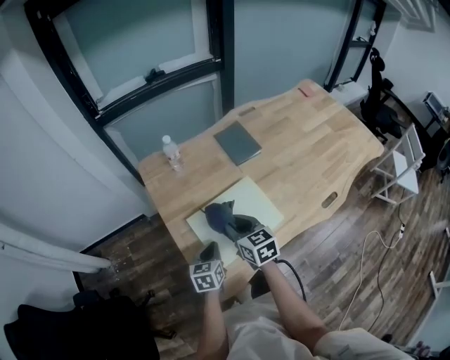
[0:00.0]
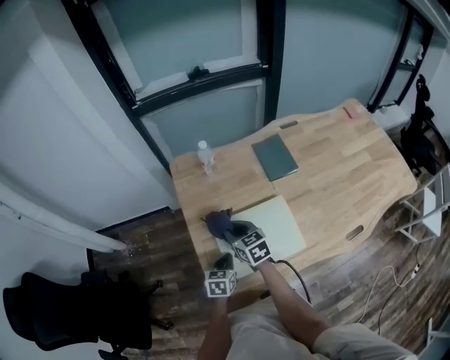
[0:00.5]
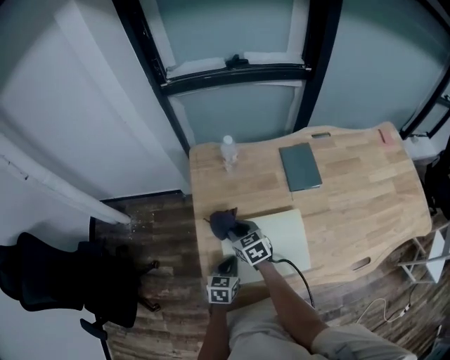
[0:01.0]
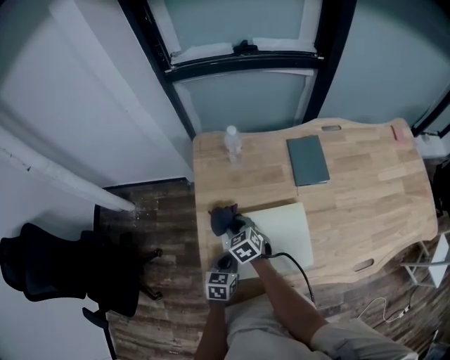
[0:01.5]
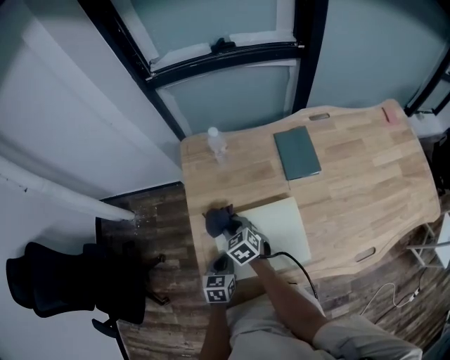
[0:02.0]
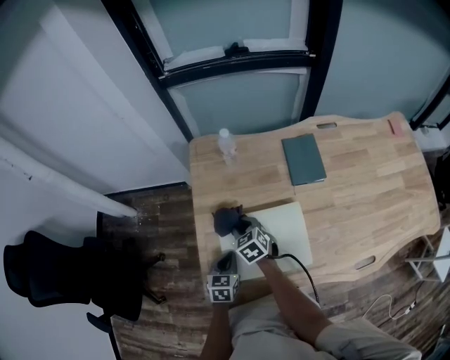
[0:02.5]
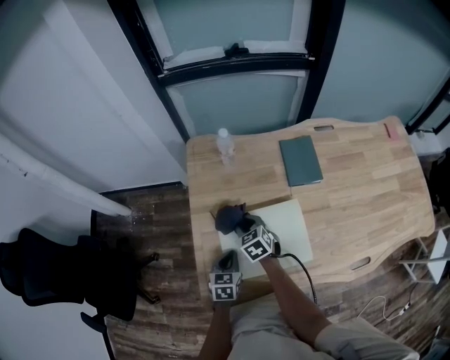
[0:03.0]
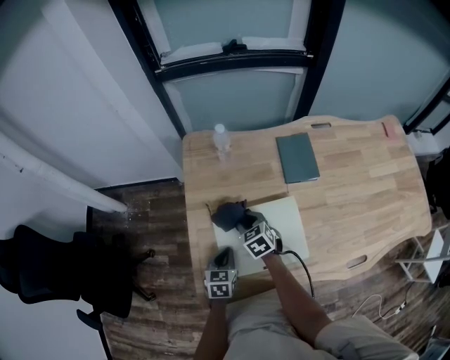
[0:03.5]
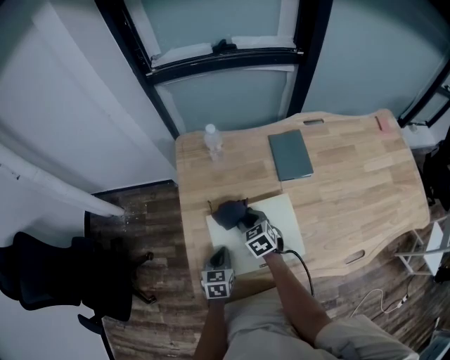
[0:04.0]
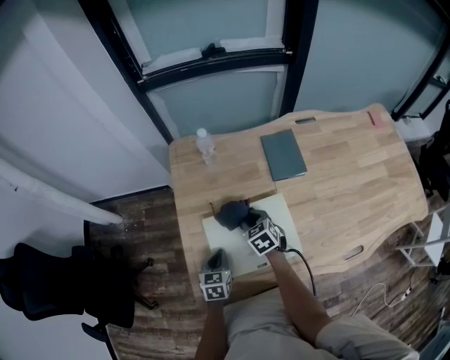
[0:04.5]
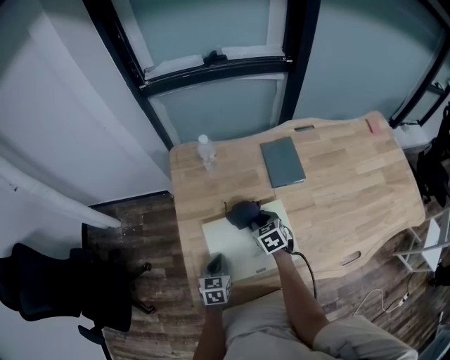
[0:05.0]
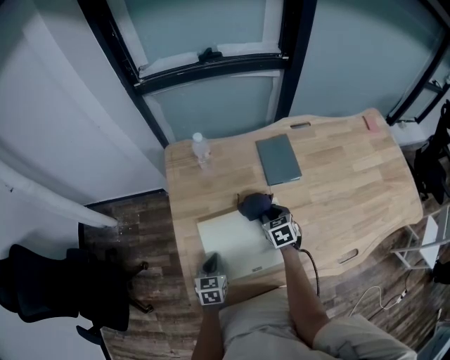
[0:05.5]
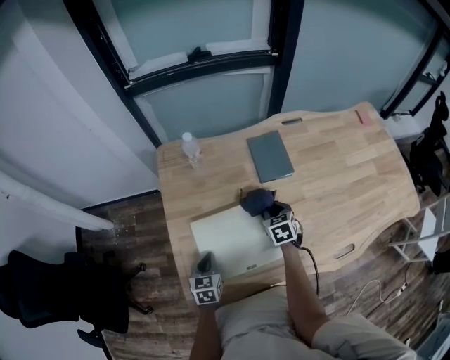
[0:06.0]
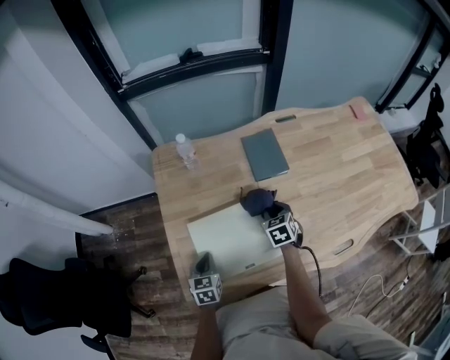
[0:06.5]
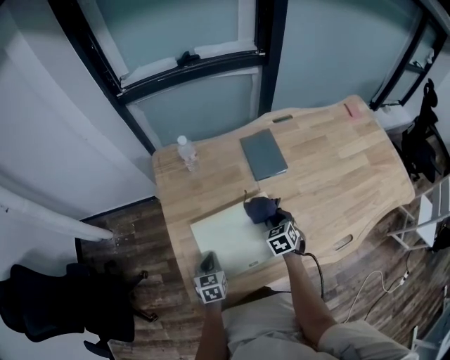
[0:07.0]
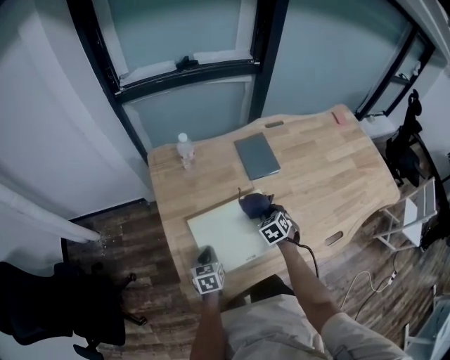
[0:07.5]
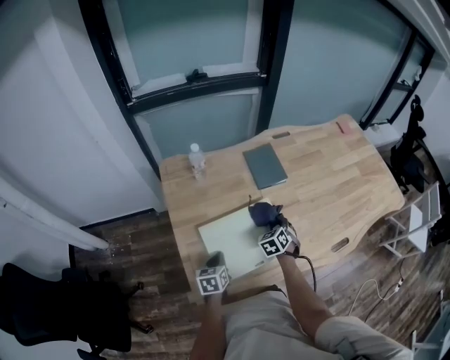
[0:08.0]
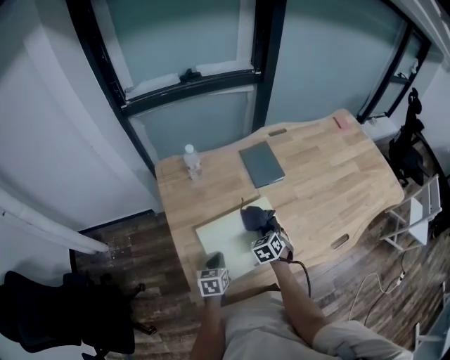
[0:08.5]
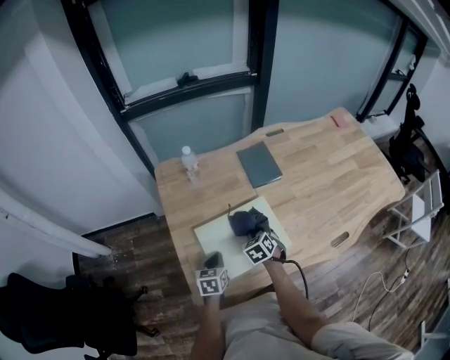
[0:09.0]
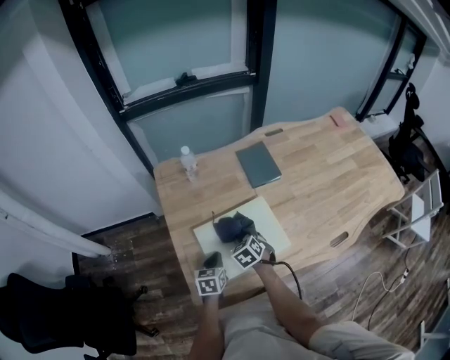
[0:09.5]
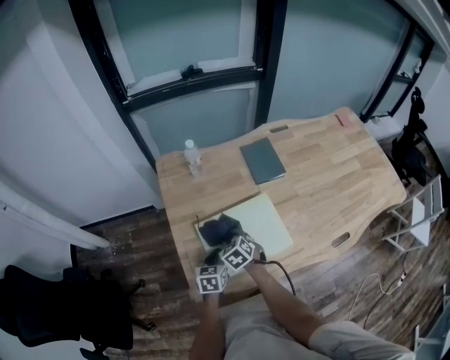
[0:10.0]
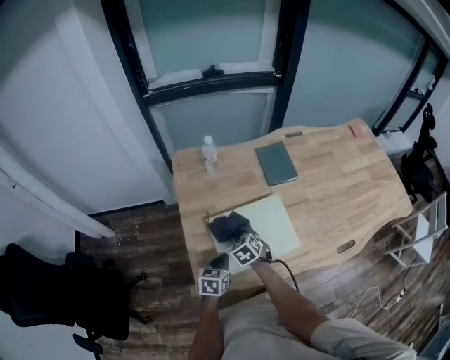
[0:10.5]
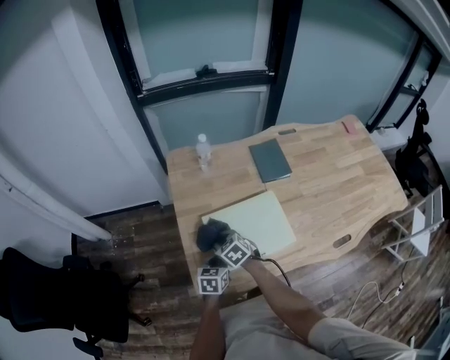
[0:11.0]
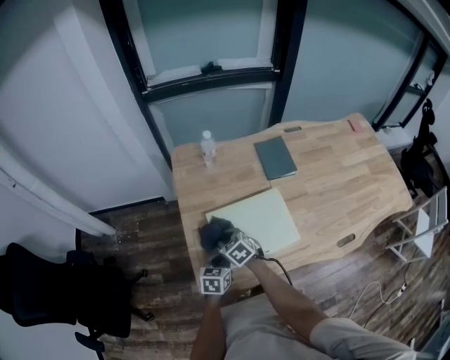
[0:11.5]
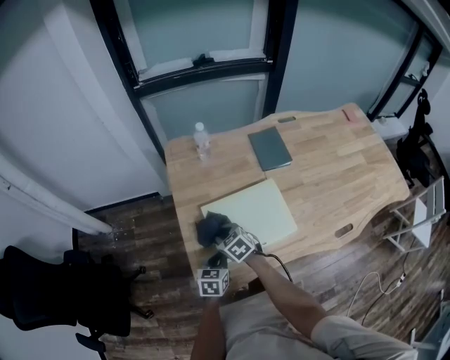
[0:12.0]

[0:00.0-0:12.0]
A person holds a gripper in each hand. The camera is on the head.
0:00.0 to 0:02.0: The left gripper moves downward, approximately 5 cm. Meanwhile the right gripper shifts roughly 20 cm downward, forward and to the left, and changes its angle by roughly 40 degrees.
0:02.0 to 0:04.0: The right gripper is displaced to the right by approximately 10 cm.
0:04.0 to 0:06.0: The right gripper heads to the right, covering about 15 cm, and turns by approximately 20 degrees.
0:06.0 to 0:08.0: The right gripper goes roughly 5 cm backward, and turns by approximately 20 degrees.
0:08.0 to 0:10.0: The right gripper travels to the left and backward by about 20 cm, and changes its angle by some 30 degrees.
0:10.0 to 0:12.0: The right gripper is displaced to the left by roughly 5 cm. The left gripper goes approximately 5 cm backward.

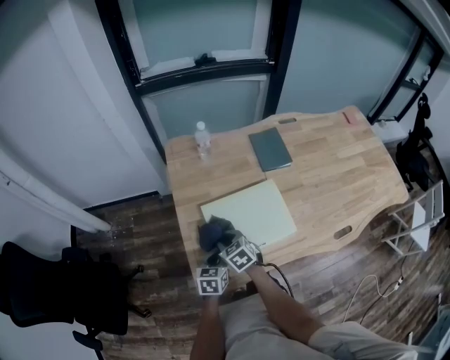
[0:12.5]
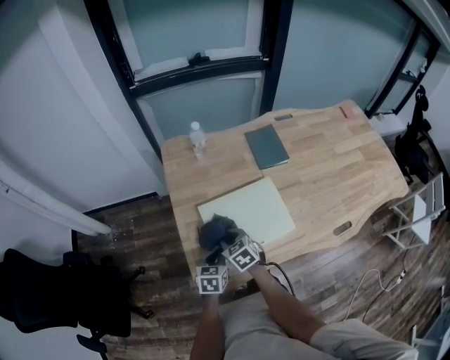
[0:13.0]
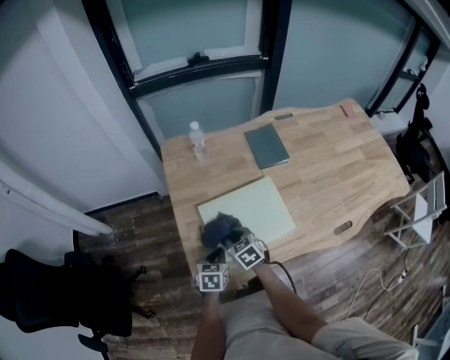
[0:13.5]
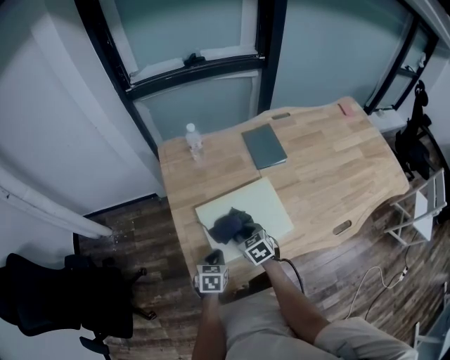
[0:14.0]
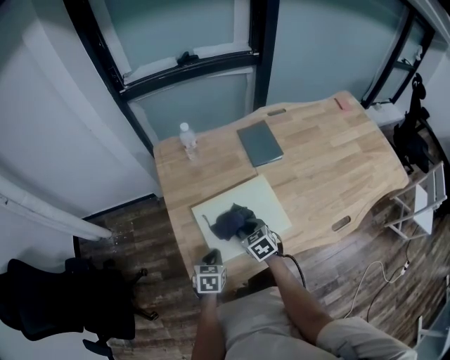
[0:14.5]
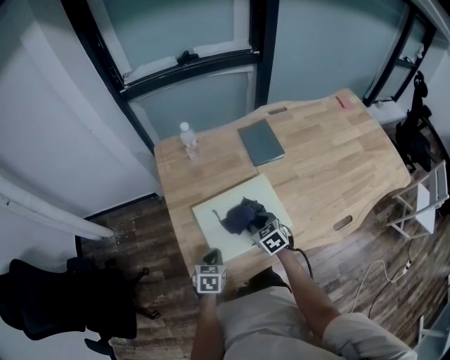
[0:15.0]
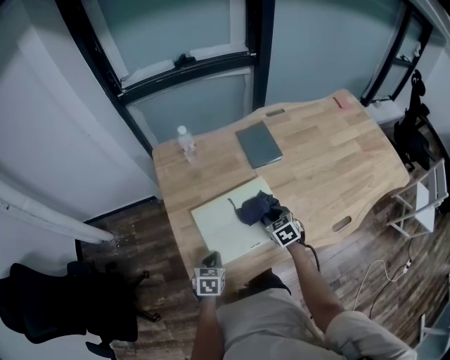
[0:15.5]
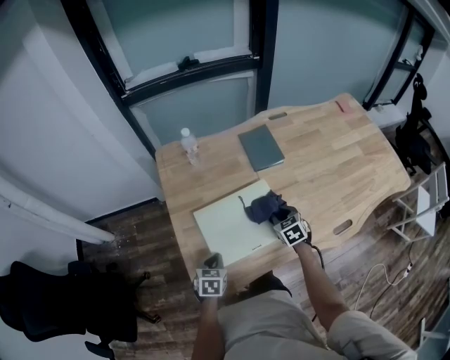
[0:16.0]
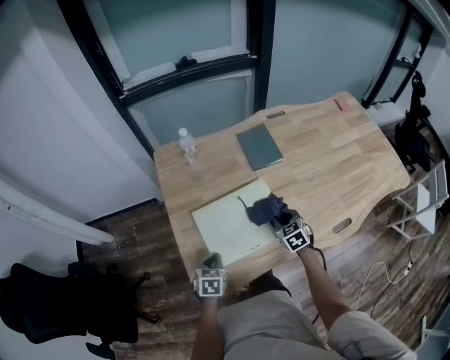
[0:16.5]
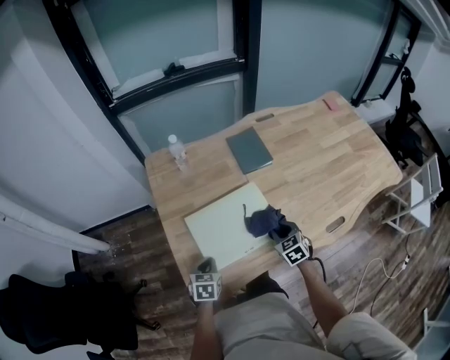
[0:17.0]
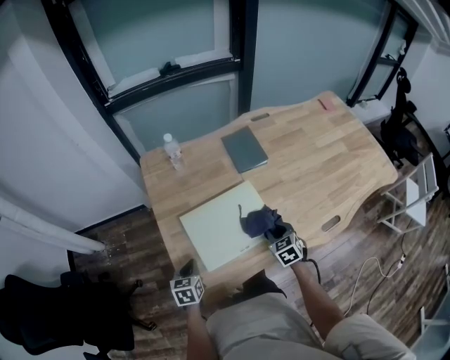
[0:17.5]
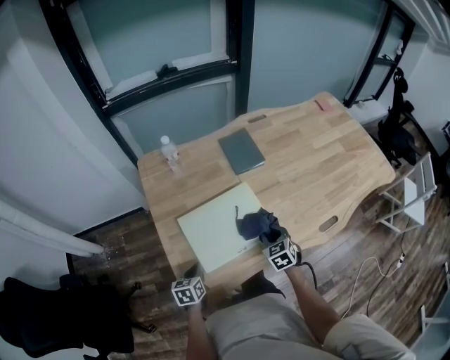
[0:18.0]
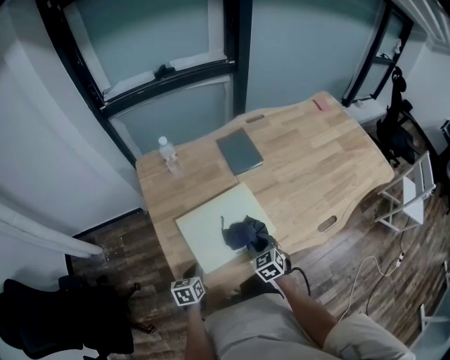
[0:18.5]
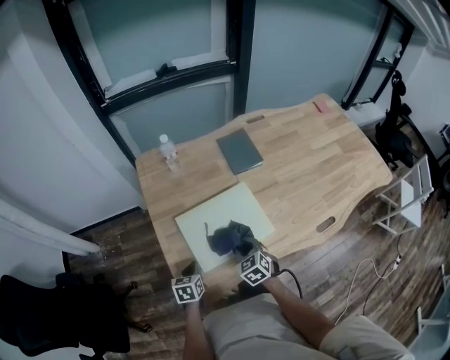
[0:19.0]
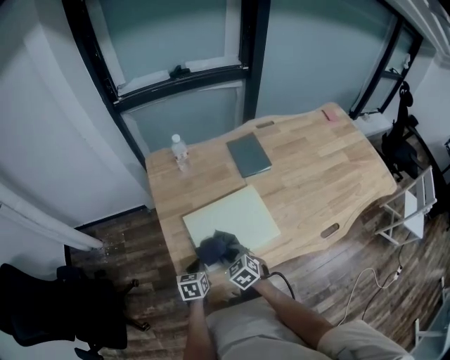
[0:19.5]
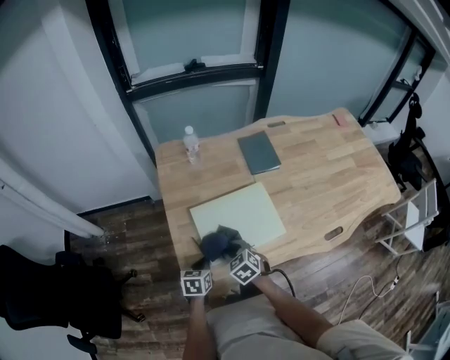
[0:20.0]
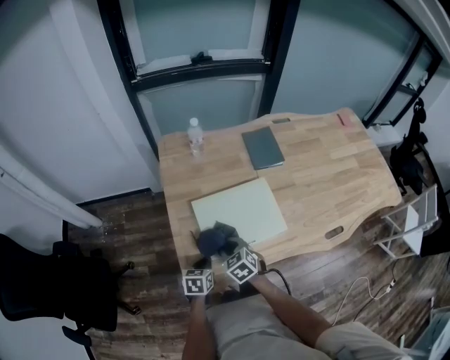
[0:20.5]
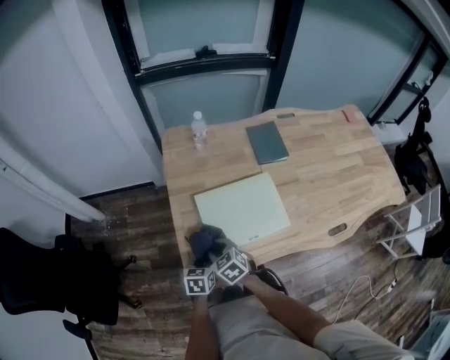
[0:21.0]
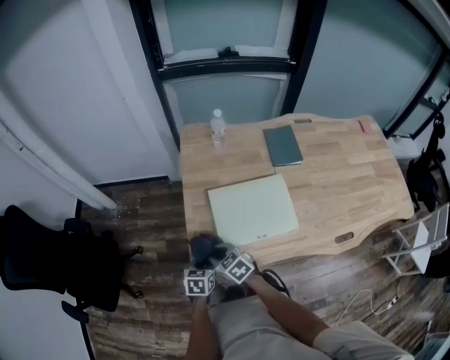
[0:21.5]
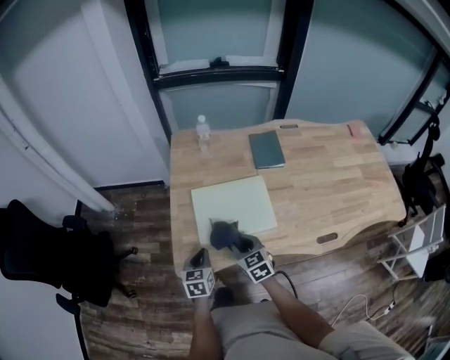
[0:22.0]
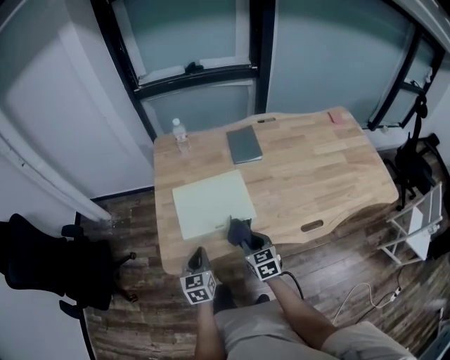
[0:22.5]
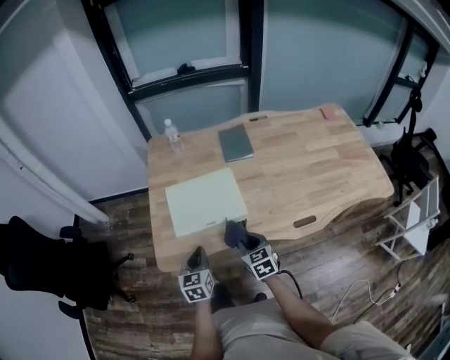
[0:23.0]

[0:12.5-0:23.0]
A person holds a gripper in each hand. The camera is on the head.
0:12.5 to 0:14.5: The right gripper shifts roughly 10 cm to the right.
0:14.5 to 0:16.5: The right gripper shifts roughly 15 cm to the right.
0:16.5 to 0:19.0: The right gripper travels to the left and backward by some 15 cm.
0:19.0 to 0:21.0: The right gripper is displaced to the left by some 15 cm, and changes its angle by some 20 degrees.
0:21.0 to 0:23.0: The right gripper moves to the right and backward, approximately 30 cm, and rotates roughly 20 degrees. Meanwhile the left gripper travels upward, backward and to the right by about 20 cm, and turns by roughly 20 degrees.

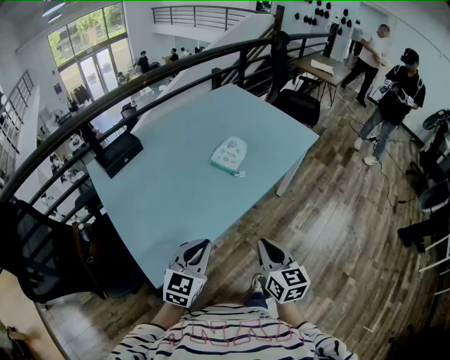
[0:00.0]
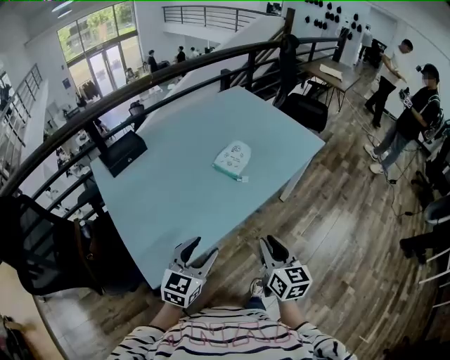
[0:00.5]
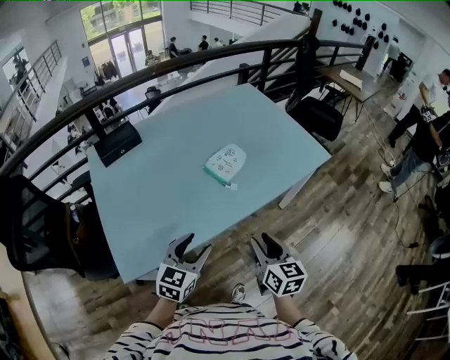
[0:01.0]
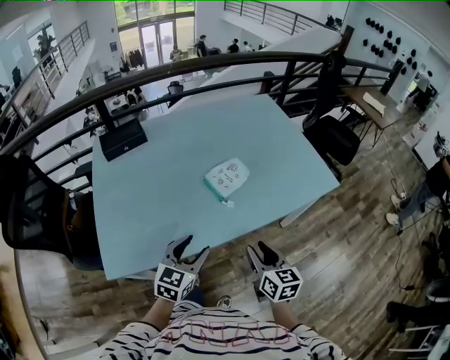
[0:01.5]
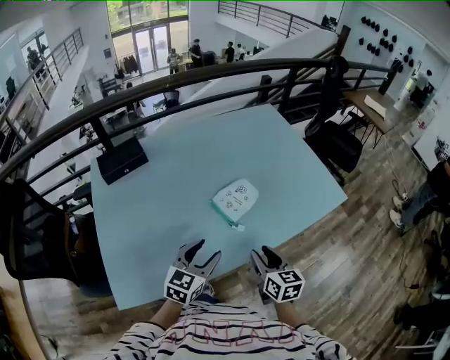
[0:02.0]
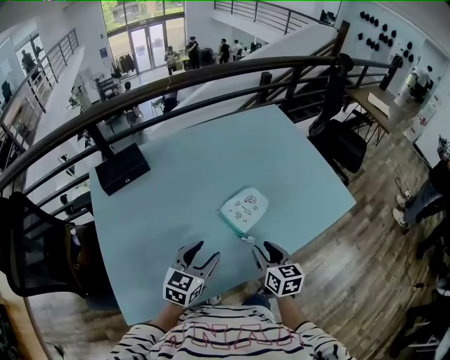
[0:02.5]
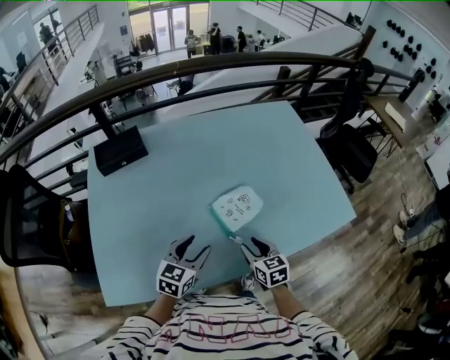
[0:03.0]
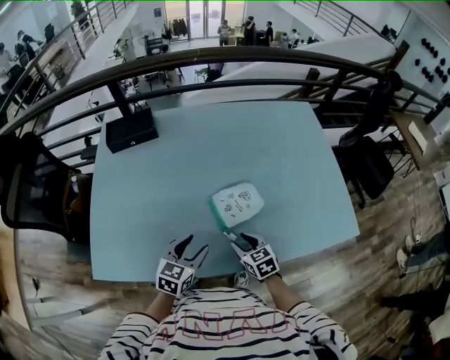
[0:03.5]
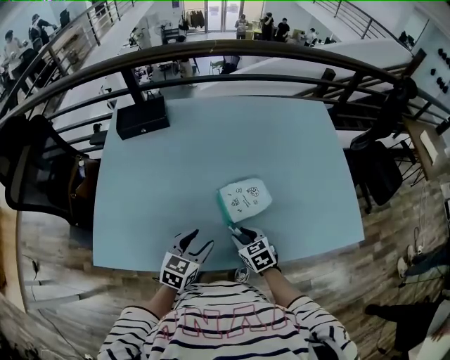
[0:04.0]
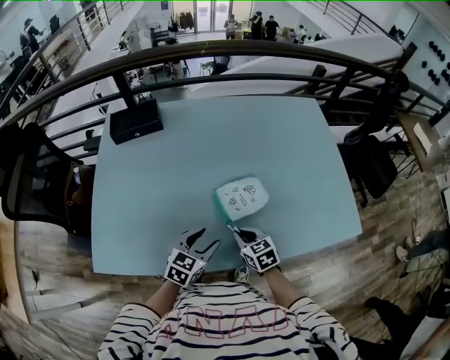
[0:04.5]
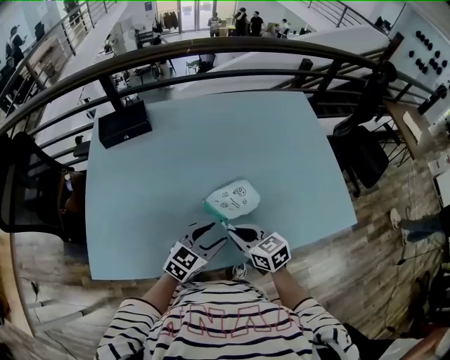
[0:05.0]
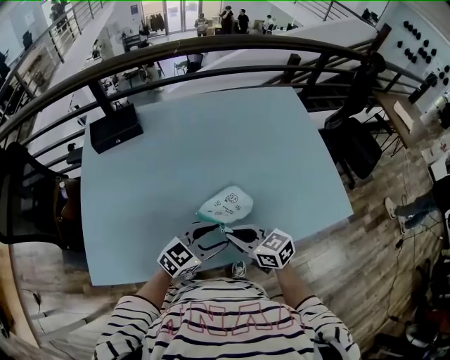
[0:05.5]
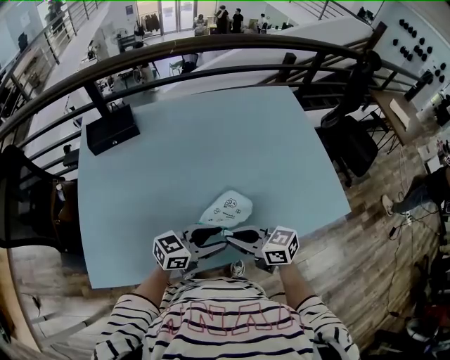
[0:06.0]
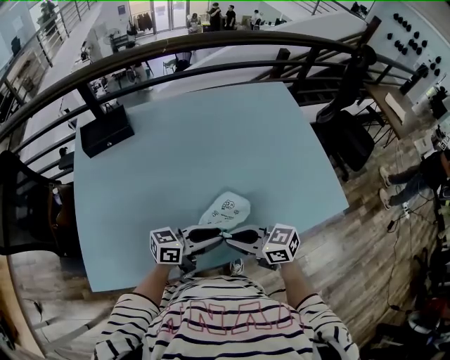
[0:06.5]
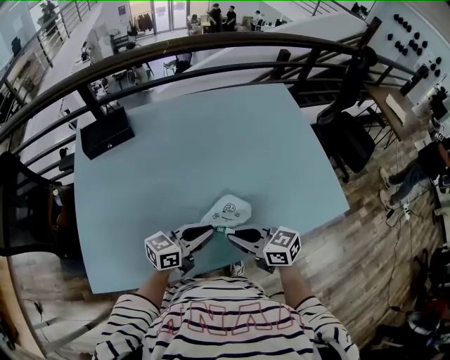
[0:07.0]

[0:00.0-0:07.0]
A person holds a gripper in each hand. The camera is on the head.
0:00.0 to 0:02.0: Both grippers travel together forward, some 25 cm. The right gripper changes its angle by about 20 degrees, and opens; the left gripper opens its fingers.
0:02.0 to 0:03.5: The left gripper moves downward, approximately 10 cm, and swivels some 20 degrees; the right gripper shifts about 15 cm downward, and swivels about 40 degrees.
0:03.5 to 0:05.0: The right gripper moves upward, about 10 cm, and closes up; the left gripper moves to the right, about 5 cm, and turns by about 20 degrees.
0:05.0 to 0:07.0: The left gripper changes its angle by some 30 degrees, and closes its fingers.
